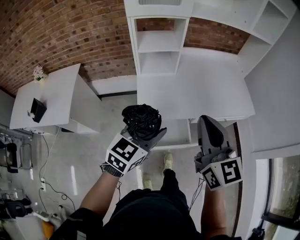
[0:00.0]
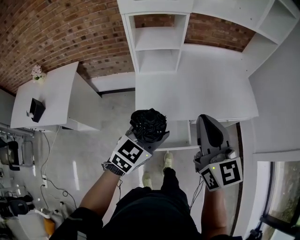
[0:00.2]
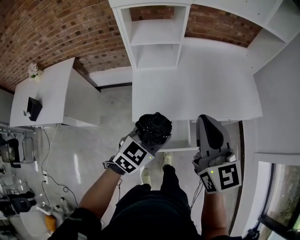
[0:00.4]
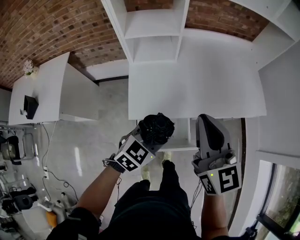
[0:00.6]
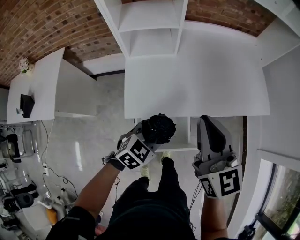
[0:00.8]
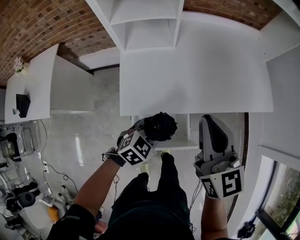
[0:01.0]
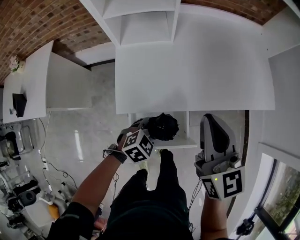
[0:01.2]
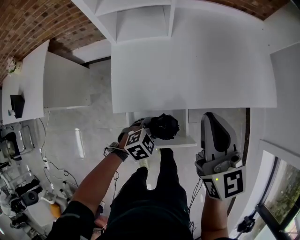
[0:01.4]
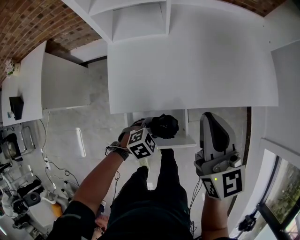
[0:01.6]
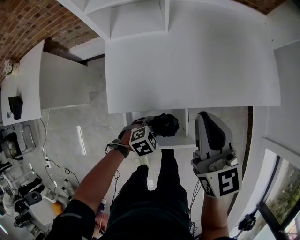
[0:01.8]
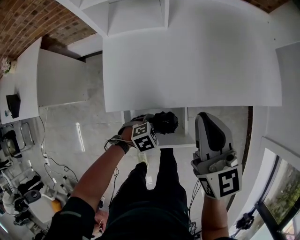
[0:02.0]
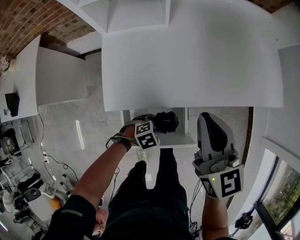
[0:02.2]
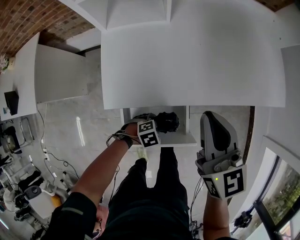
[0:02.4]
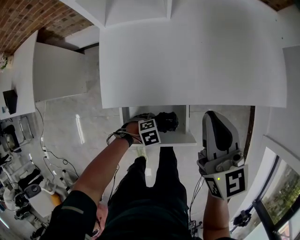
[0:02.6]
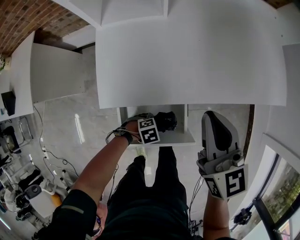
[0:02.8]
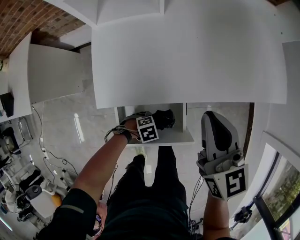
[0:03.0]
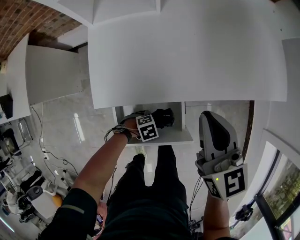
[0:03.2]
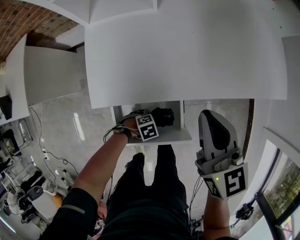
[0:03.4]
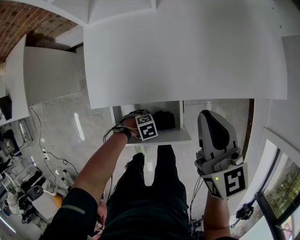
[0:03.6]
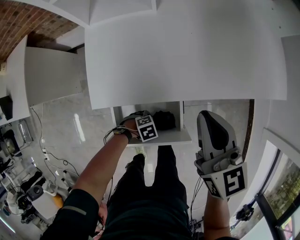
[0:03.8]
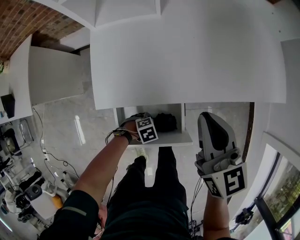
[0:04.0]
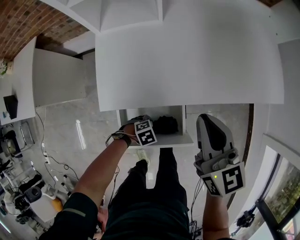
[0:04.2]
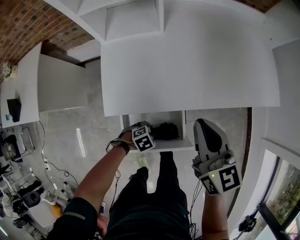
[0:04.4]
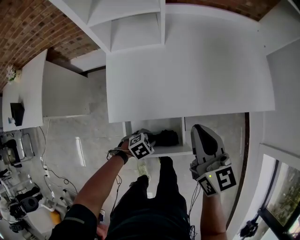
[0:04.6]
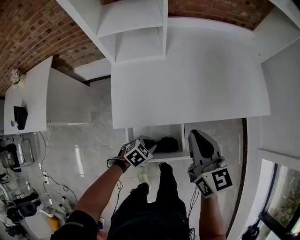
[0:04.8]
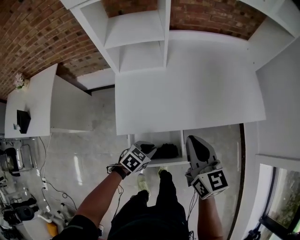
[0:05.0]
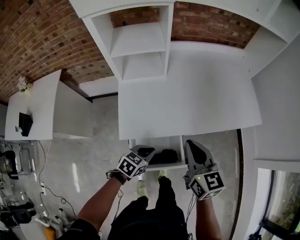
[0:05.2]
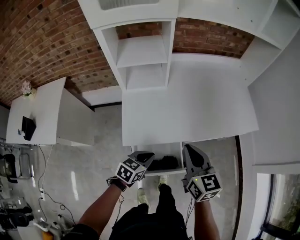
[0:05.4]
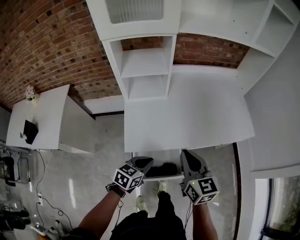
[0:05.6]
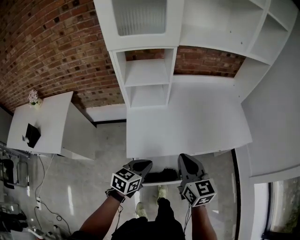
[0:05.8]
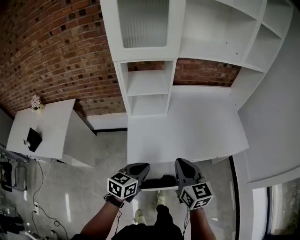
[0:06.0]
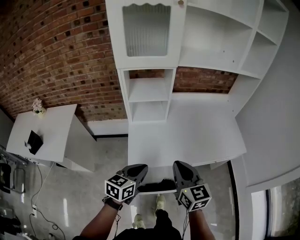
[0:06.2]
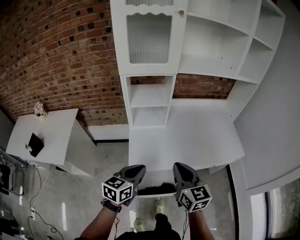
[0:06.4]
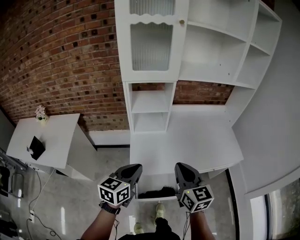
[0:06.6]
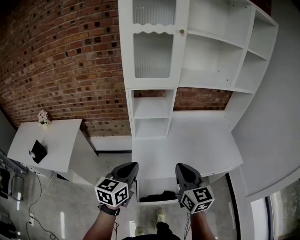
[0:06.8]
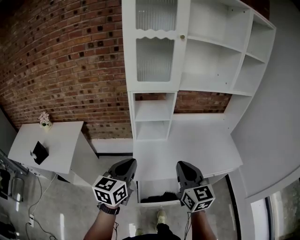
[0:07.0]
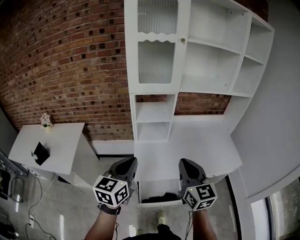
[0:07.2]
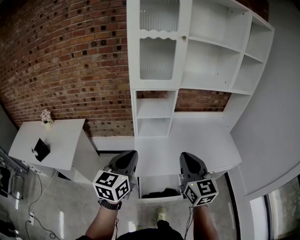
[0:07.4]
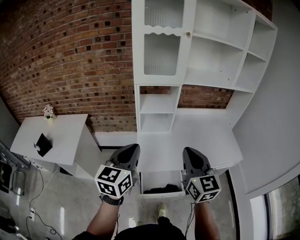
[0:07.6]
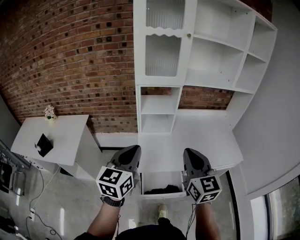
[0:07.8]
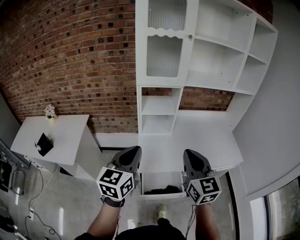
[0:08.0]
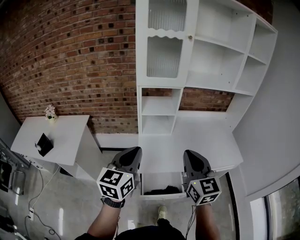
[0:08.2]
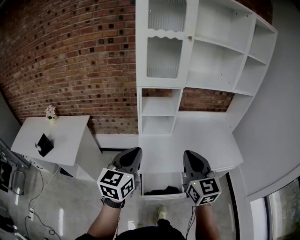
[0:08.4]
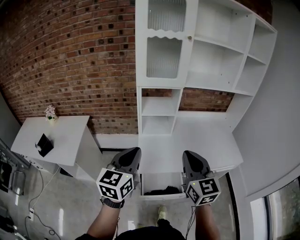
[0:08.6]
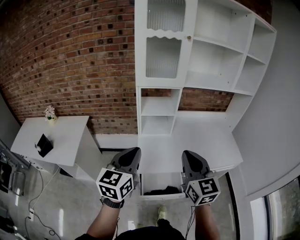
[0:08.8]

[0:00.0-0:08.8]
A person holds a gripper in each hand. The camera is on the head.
0:00.0 to 0:01.4: The right gripper is displaced downward and forward by about 25 cm, while the left gripper moves downward, roughly 35 cm, and angles its fingers downward, by some 40 degrees.
0:01.4 to 0:03.0: The right gripper travels downward by roughly 10 cm. The left gripper heads downward, covering approximately 20 cm, and rotates about 30 degrees.
0:03.0 to 0:04.4: There are only small adjustments of the grippers.
0:04.4 to 0:05.8: The left gripper is displaced upward by some 35 cm, tilts its fingers approximately 40 degrees upward, and closes its fingers; the right gripper goes approximately 10 cm upward.
0:05.8 to 0:07.4: The right gripper heads upward, covering approximately 20 cm, while the left gripper is displaced upward and to the left by some 30 cm, and turns by roughly 30 degrees.
0:07.4 to 0:08.8: The grippers stay close to where they were, moving slightly.

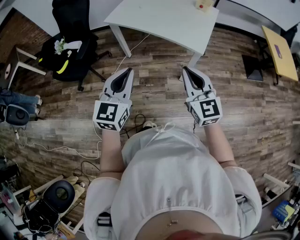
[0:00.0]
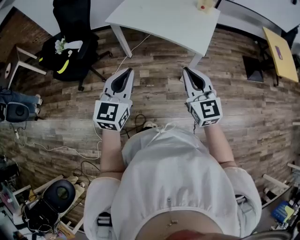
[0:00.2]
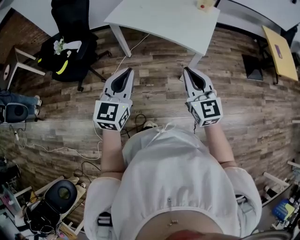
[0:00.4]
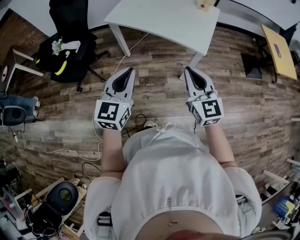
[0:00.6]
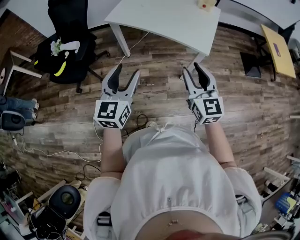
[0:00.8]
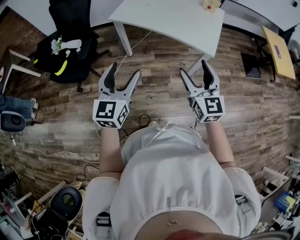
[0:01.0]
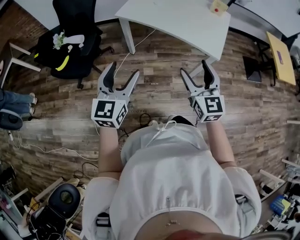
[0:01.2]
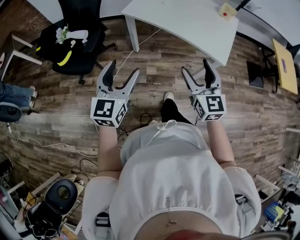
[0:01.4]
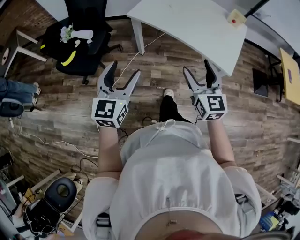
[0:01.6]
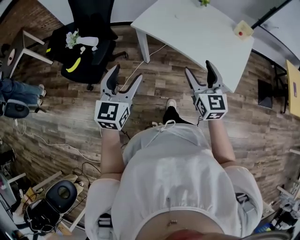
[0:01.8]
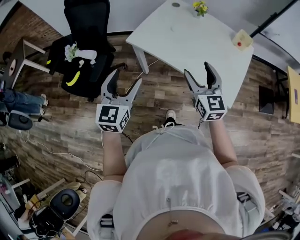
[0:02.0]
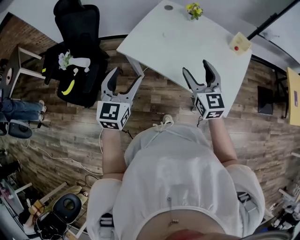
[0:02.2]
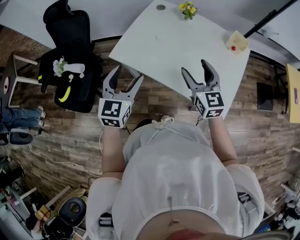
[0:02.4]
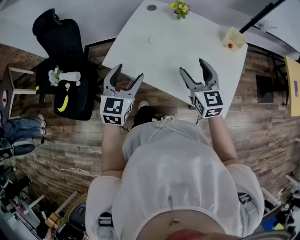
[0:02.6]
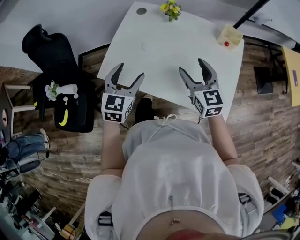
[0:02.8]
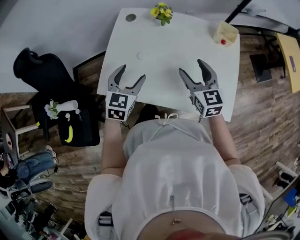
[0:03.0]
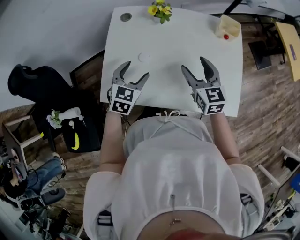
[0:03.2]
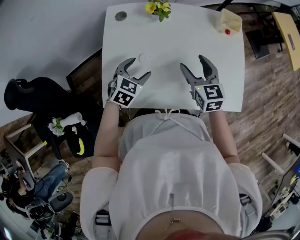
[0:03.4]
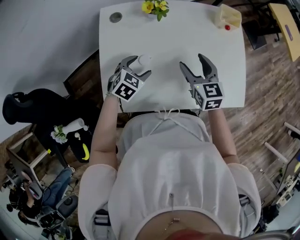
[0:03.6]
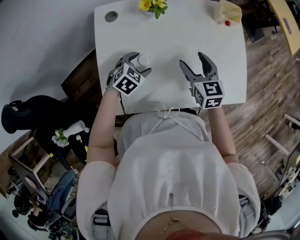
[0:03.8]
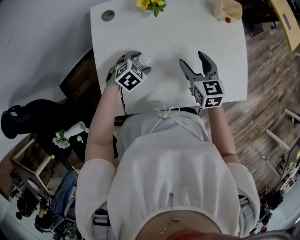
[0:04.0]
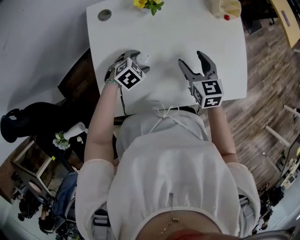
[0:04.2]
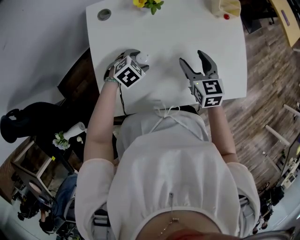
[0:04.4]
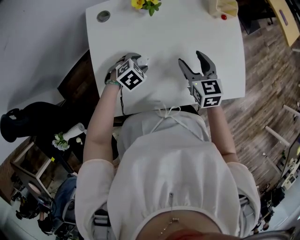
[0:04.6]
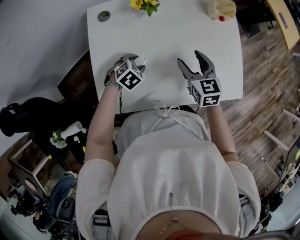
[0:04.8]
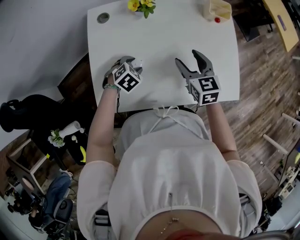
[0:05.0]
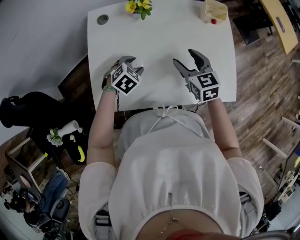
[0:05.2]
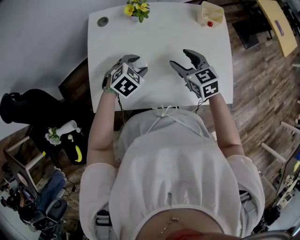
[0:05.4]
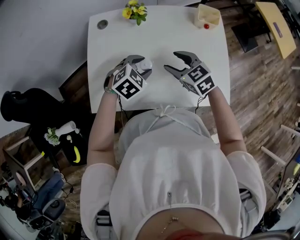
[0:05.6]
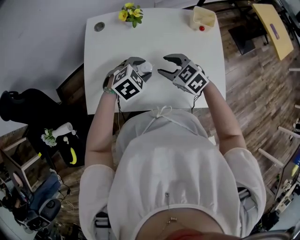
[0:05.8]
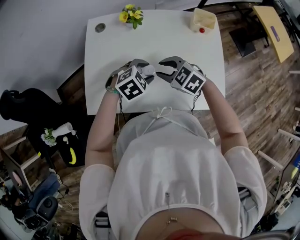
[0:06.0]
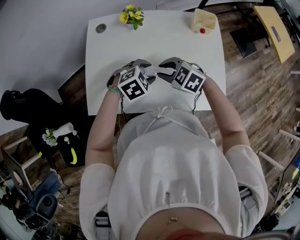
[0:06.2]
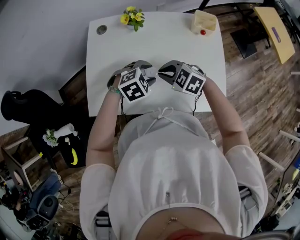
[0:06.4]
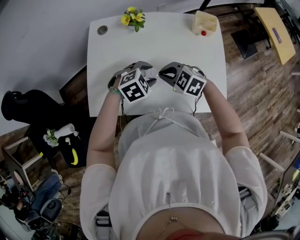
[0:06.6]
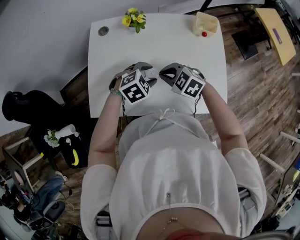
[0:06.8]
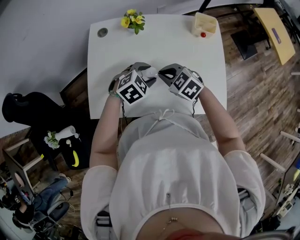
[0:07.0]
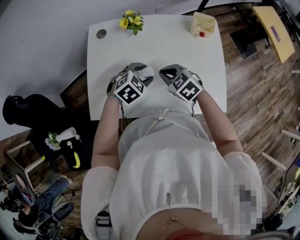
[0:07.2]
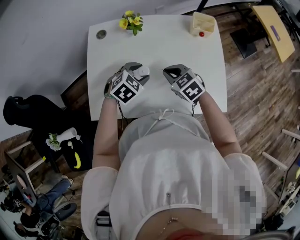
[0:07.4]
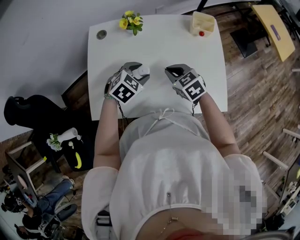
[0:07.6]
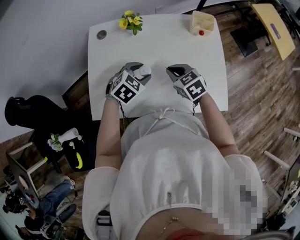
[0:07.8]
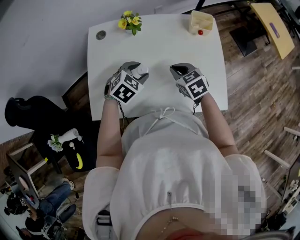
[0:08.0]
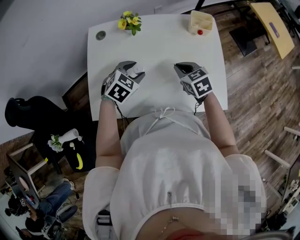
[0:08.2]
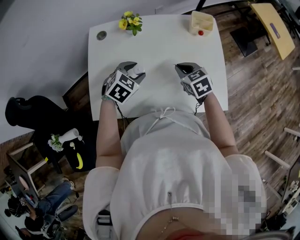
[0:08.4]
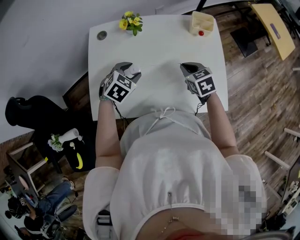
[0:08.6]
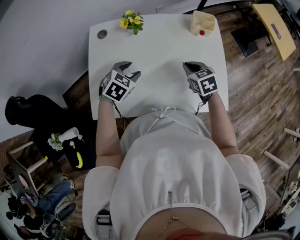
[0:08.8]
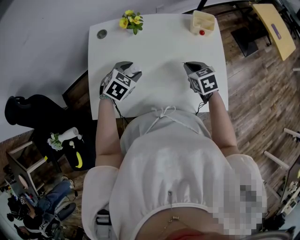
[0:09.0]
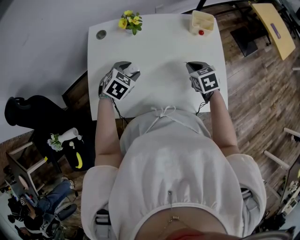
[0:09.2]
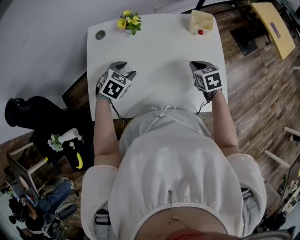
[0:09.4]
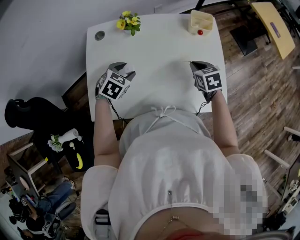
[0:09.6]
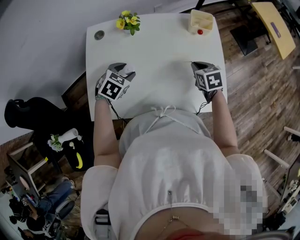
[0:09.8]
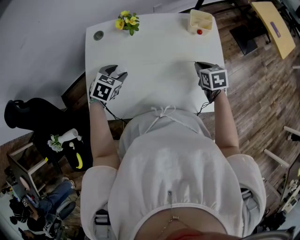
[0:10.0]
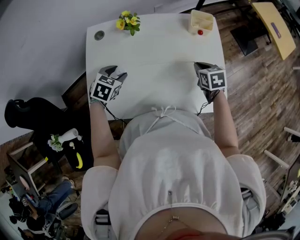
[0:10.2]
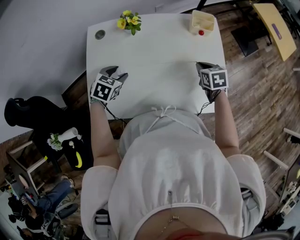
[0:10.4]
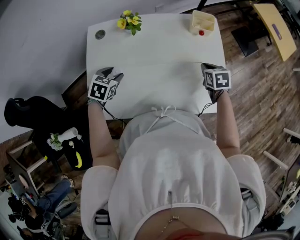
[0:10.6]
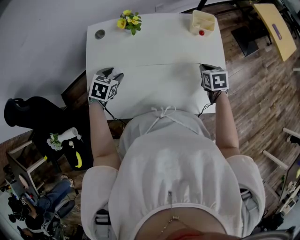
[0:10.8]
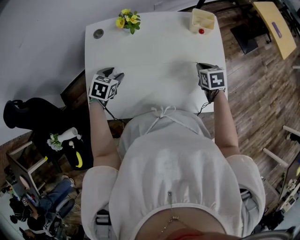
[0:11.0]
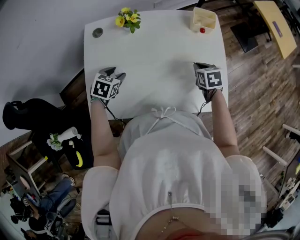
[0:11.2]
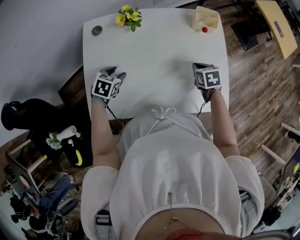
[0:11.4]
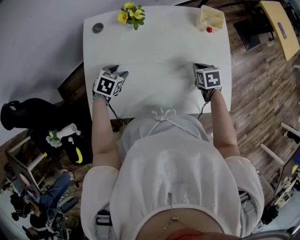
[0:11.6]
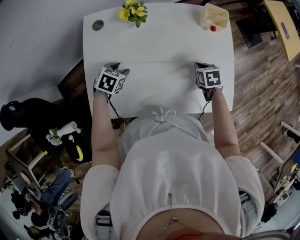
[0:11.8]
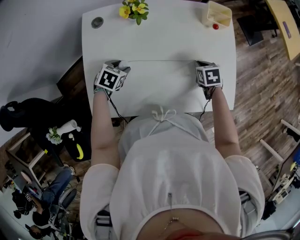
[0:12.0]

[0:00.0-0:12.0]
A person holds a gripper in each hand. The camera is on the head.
0:00.0 to 0:01.6: The left gripper moves to the left and forward, about 25 cm, and opens its fingers. Meanwhile the right gripper heads forward and to the left, covering about 20 cm, and opens its fingers.
0:01.6 to 0:03.0: The pair of grippers is taken forward, some 50 cm. The left gripper rotates about 30 degrees.
0:03.0 to 0:04.4: The left gripper heads downward, covering approximately 20 cm, and tips its fingers downward by some 30 degrees; the right gripper travels downward by about 10 cm, and swivels roughly 30 degrees.
0:04.4 to 0:06.0: The left gripper shifts by some 20 cm. Meanwhile the right gripper changes place by approximately 5 cm, rotates approximately 50 degrees, and closes.
0:06.0 to 0:07.6: The right gripper changes its angle by approximately 20 degrees, and closes up.
0:07.6 to 0:09.0: The right gripper heads to the right, covering about 10 cm.
0:09.0 to 0:10.4: The right gripper moves to the right, some 10 cm, while the left gripper heads to the left, covering some 5 cm.
0:10.4 to 0:12.0: The grippers both shift downward by roughly 10 cm.

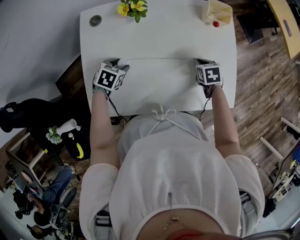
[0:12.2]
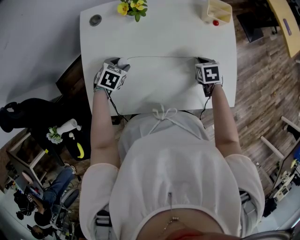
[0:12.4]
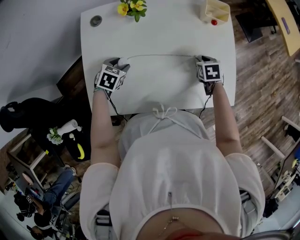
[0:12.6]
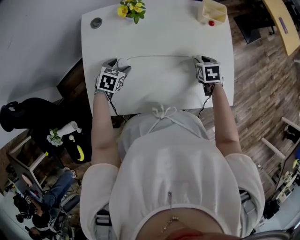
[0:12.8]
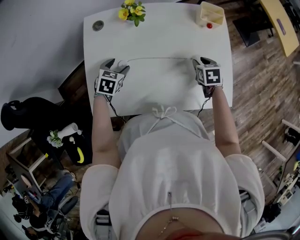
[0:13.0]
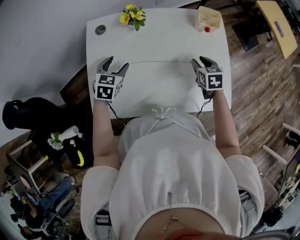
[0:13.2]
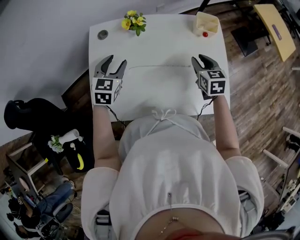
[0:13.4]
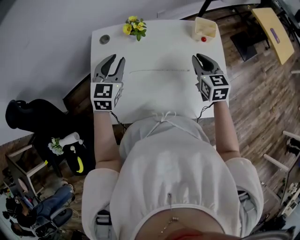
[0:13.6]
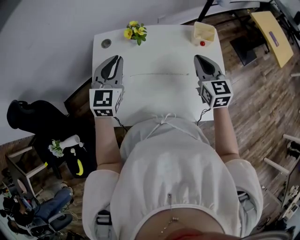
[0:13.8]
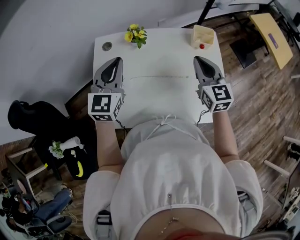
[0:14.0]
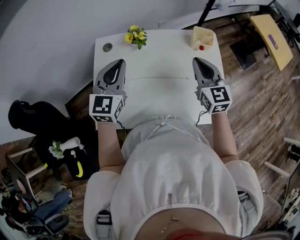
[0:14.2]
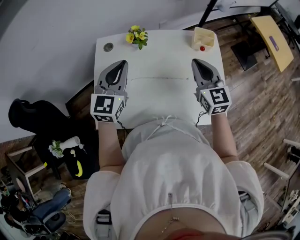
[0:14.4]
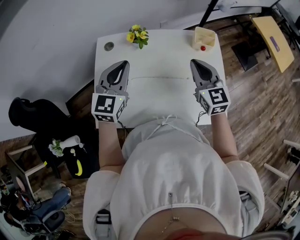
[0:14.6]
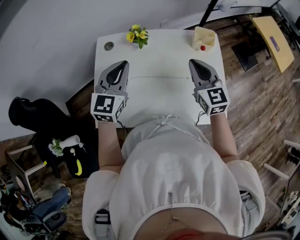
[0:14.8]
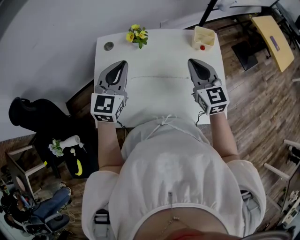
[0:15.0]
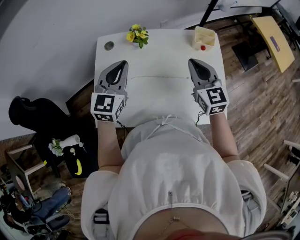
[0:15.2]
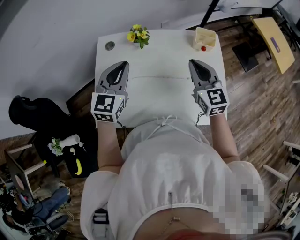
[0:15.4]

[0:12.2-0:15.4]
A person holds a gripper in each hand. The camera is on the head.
0:12.2 to 0:13.8: The grippers both shift upward by about 30 cm. The right gripper tilts its fingers roughly 50 degrees upward, and opens, then closes once more. Meanwhile the left gripper tips its fingers upward by about 50 degrees, and closes.
0:13.8 to 0:15.4: There are only small adjustments of the grippers.
